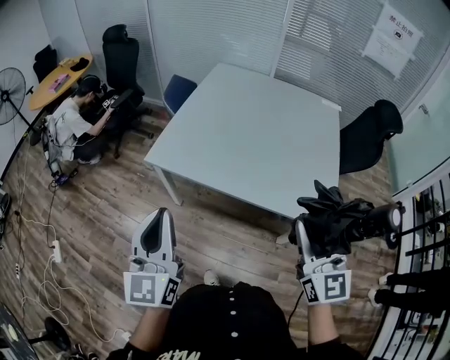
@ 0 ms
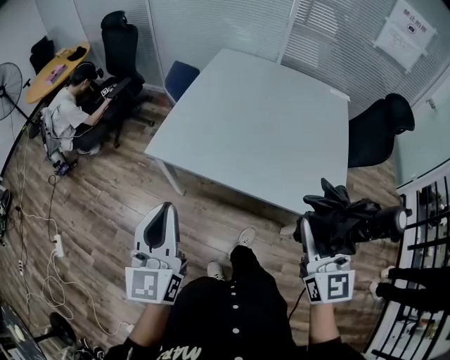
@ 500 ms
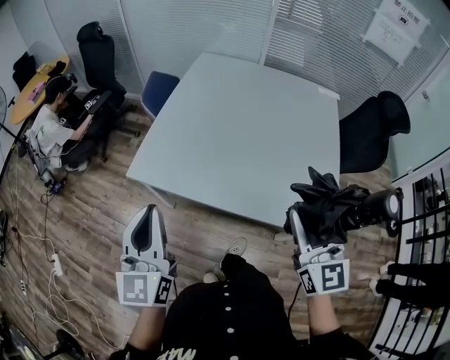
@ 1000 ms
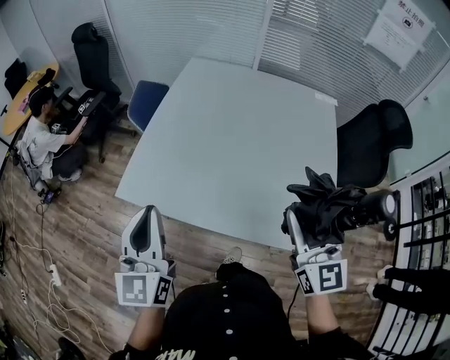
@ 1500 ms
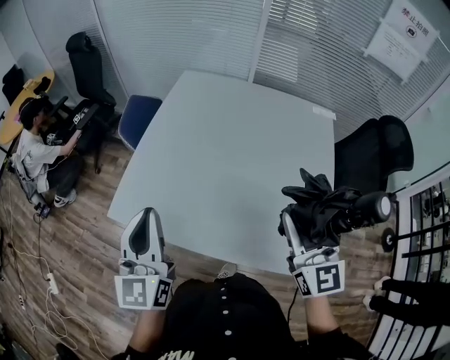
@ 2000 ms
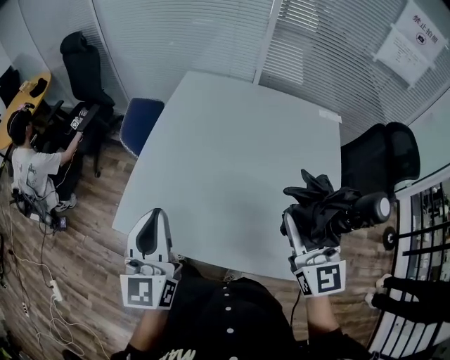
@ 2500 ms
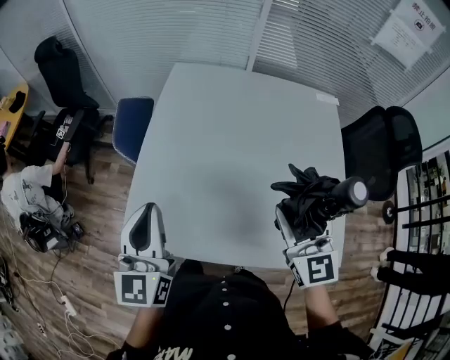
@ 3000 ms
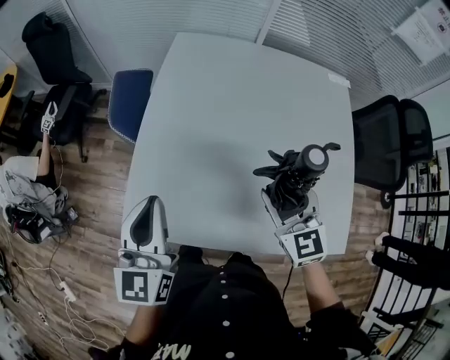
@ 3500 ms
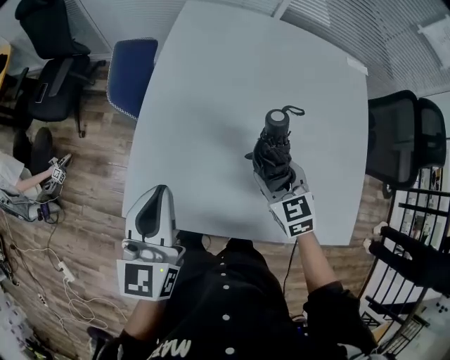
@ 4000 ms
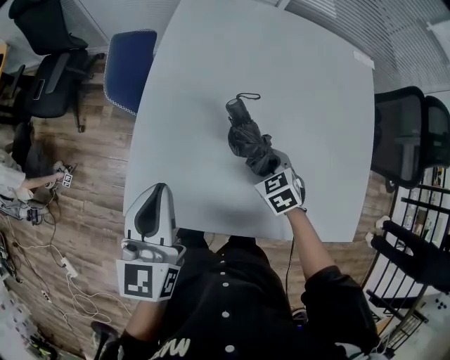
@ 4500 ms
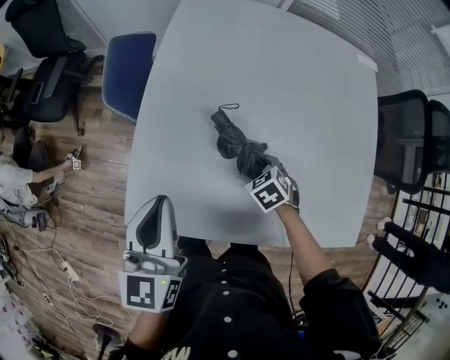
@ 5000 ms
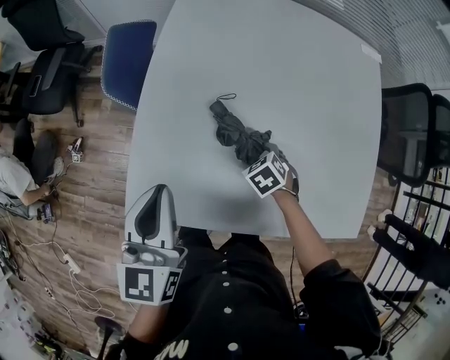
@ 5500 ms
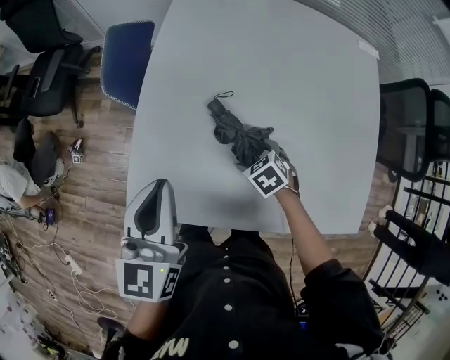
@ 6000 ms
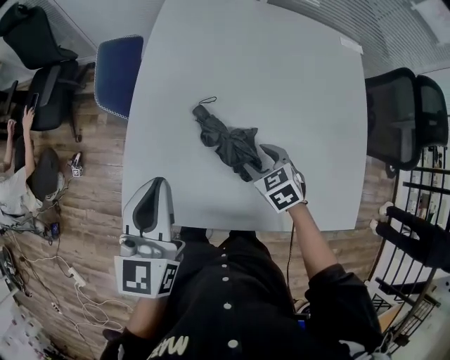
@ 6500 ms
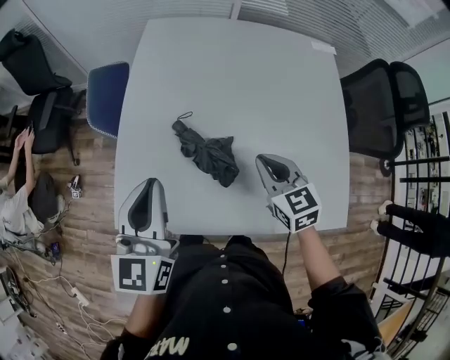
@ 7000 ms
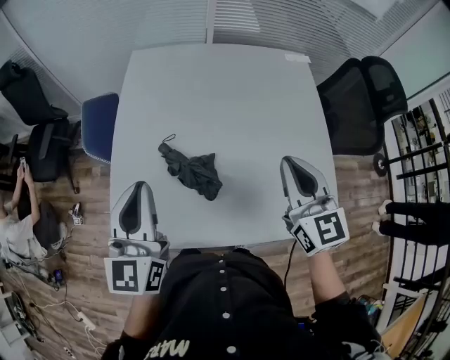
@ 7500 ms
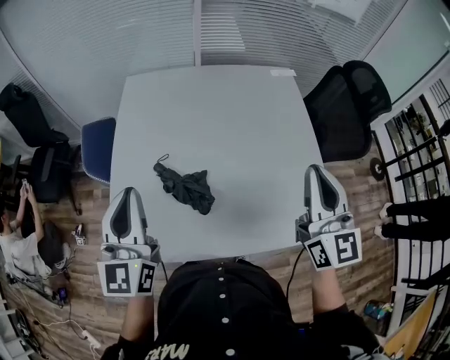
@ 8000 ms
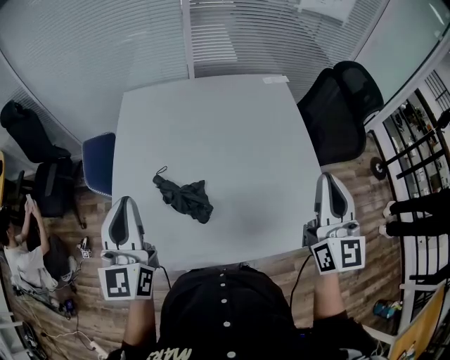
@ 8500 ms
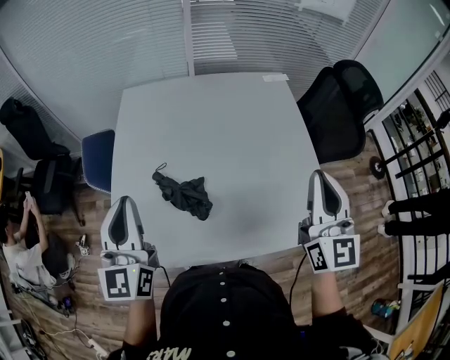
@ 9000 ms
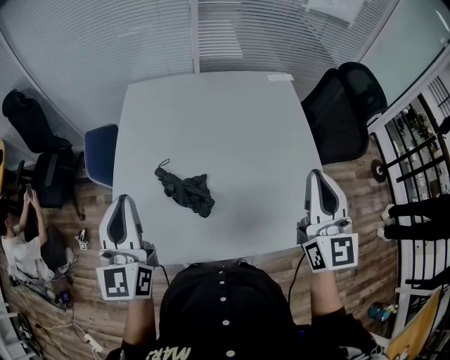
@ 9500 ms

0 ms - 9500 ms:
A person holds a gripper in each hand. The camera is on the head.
0 ms - 2000 ms: Both grippers move forward, roughly 25 cm.
2000 ms - 4000 ms: The left gripper shifts some 20 cm forward, to the left and downward, and changes its angle by approximately 20 degrees. The right gripper moves downward, to the left and forward, some 35 cm, and points its fingers roughly 40 degrees further downward.
4000 ms - 5500 ms: The right gripper heads downward, covering roughly 15 cm, and points its fingers some 30 degrees further downward.
5500 ms - 7500 ms: The left gripper shifts some 10 cm upward. The right gripper shifts approximately 35 cm upward, tips its fingers upward by some 70 degrees, and closes up.
7500 ms - 9500 ms: The right gripper heads to the right and upward, covering about 10 cm, and rotates approximately 20 degrees.

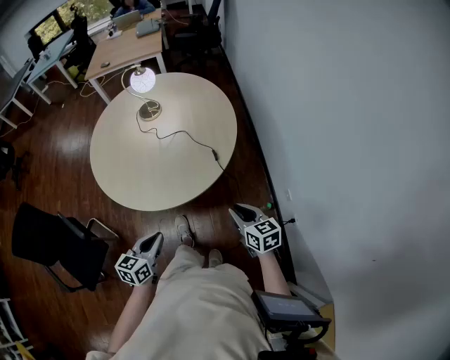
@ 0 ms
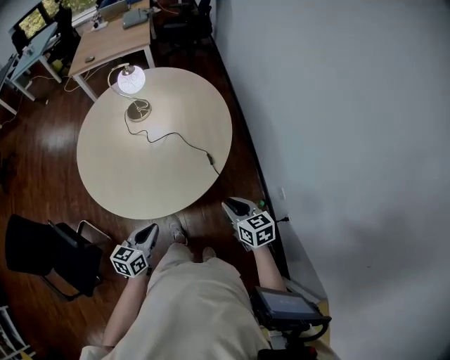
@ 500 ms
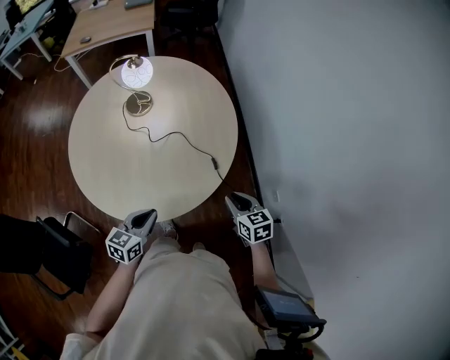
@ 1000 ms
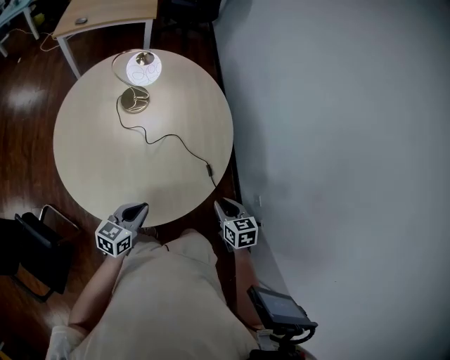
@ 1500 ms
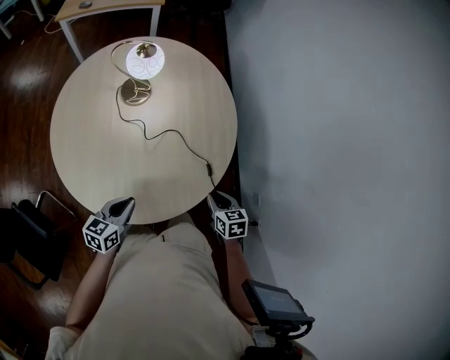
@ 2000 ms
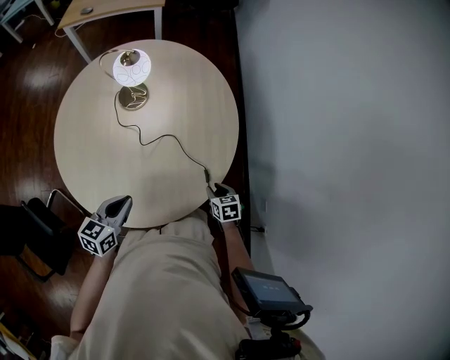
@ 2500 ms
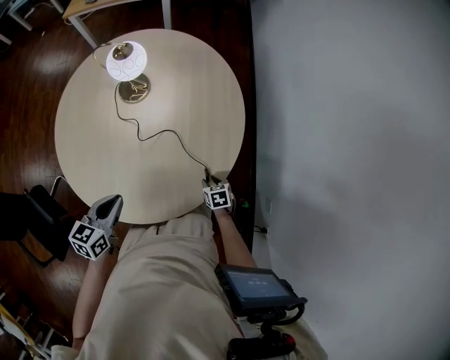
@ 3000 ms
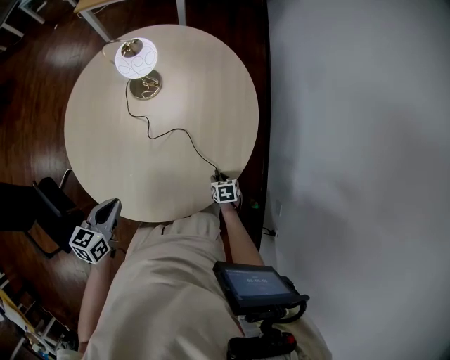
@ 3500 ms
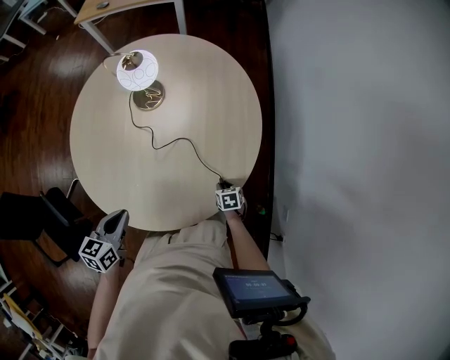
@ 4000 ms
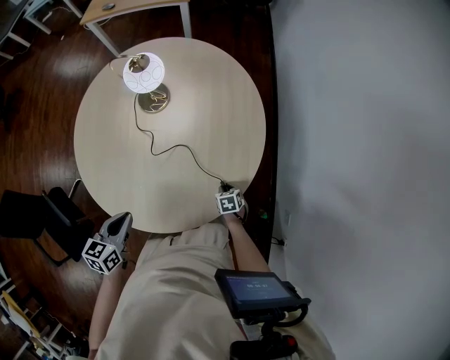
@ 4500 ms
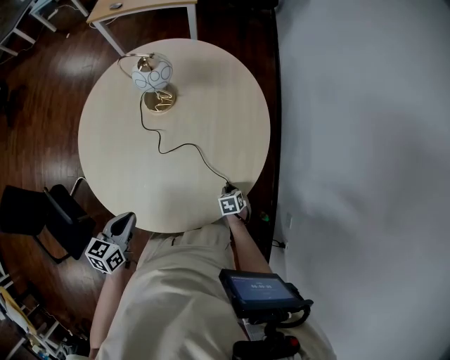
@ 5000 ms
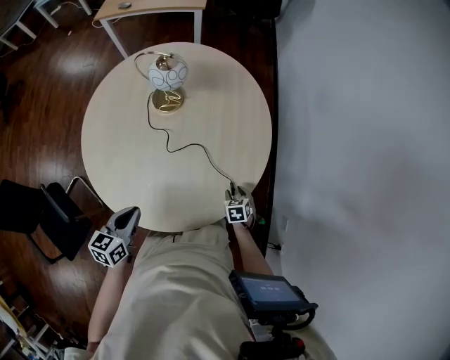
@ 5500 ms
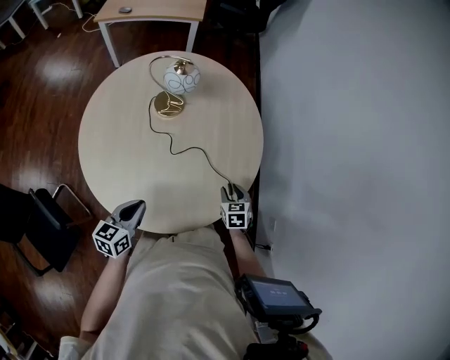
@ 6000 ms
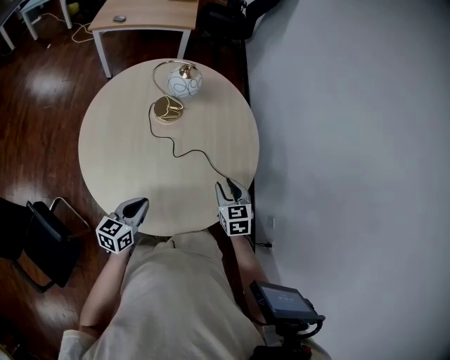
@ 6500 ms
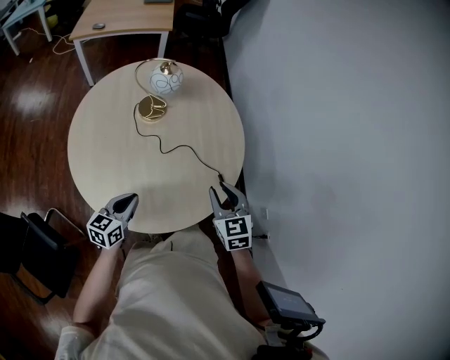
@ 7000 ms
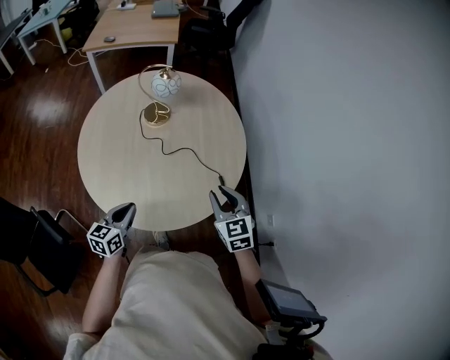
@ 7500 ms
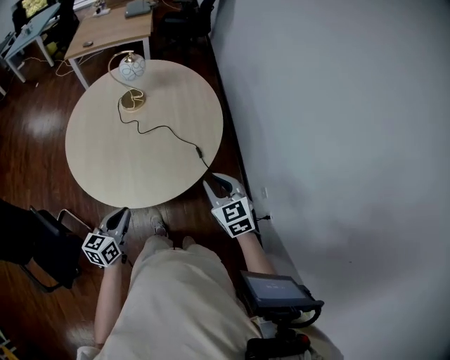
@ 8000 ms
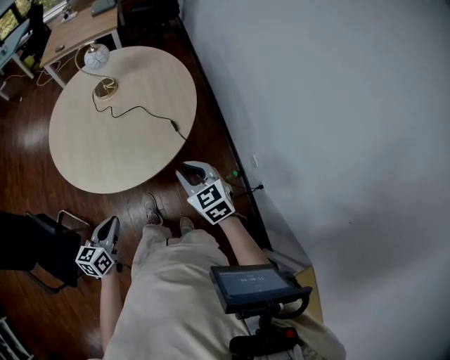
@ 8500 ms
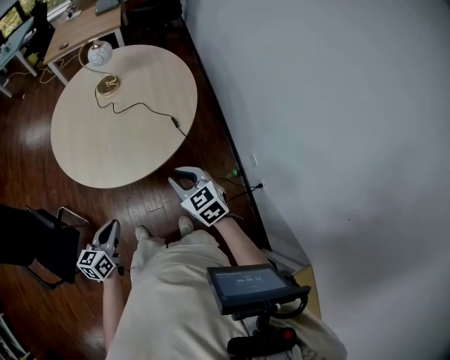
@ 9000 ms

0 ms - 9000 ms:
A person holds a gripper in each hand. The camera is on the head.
0 ms - 2000 ms: Both grippers travel together forward and to the left, roughly 25 cm. The right gripper changes its angle by roughly 20 degrees.
2000 ms - 4500 ms: The right gripper goes some 25 cm downward and forward, and rotates approximately 20 degrees. The left gripper swivels about 20 degrees.
4500 ms - 7000 ms: The right gripper travels upward by approximately 40 cm, and tilts its fingers some 40 degrees upward. Meanwhile the left gripper is displaced to the left by approximately 10 cm, and turns by about 20 degrees.
7000 ms - 9000 ms: Both grippers move backward and to the right, roughly 30 cm. The right gripper turns by approximately 20 degrees.

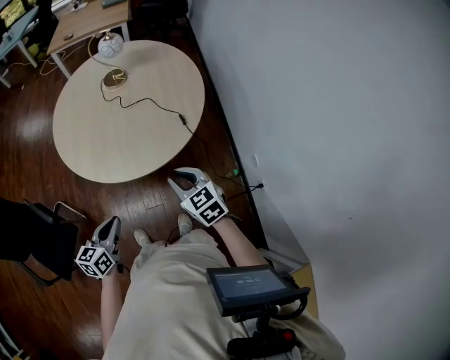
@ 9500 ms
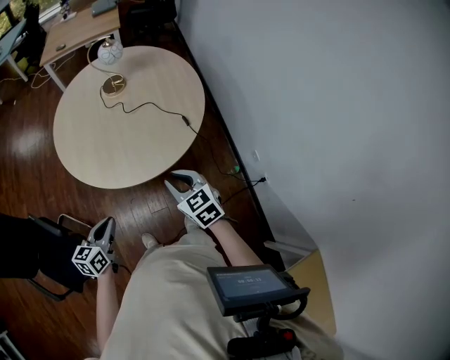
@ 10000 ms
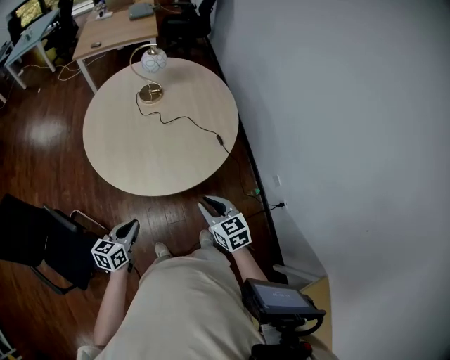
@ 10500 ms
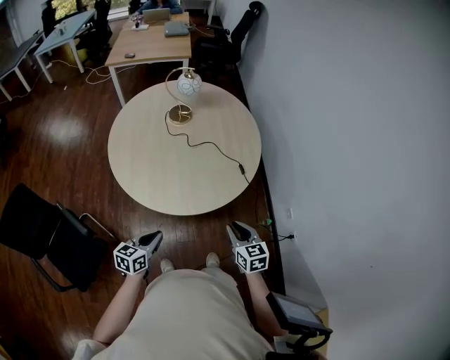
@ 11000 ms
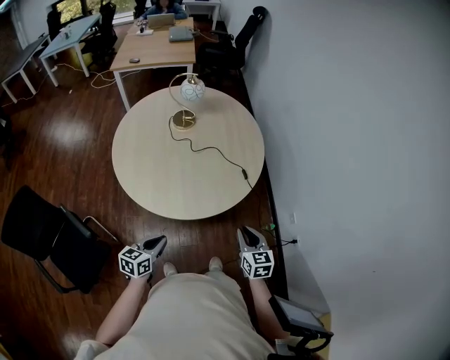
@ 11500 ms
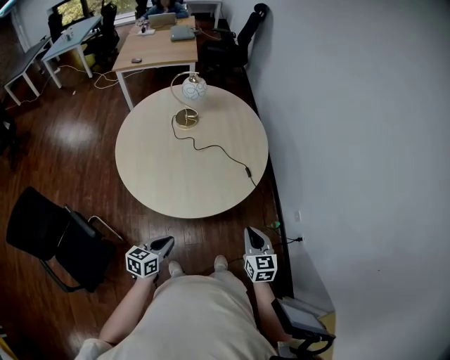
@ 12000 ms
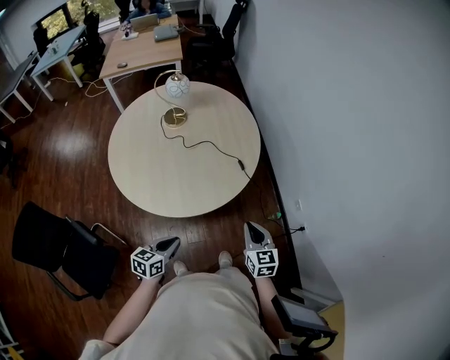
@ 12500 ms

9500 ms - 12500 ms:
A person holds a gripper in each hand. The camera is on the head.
9500 ms - 11000 ms: The right gripper shifts by some 5 cm. The left gripper travels to the left and forward by approximately 10 cm.
11000 ms - 12500 ms: The grippers both shift to the right by approximately 5 cm.

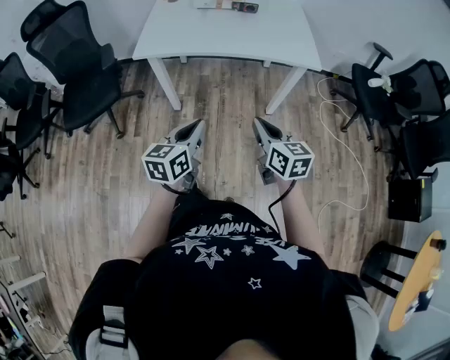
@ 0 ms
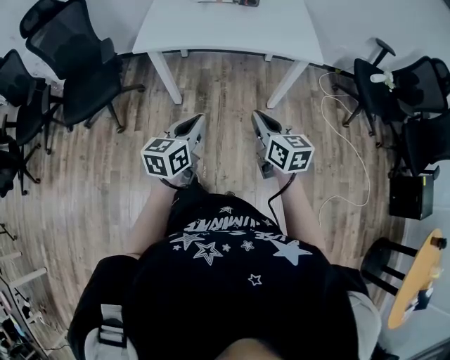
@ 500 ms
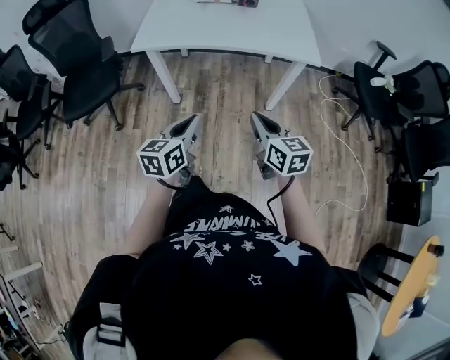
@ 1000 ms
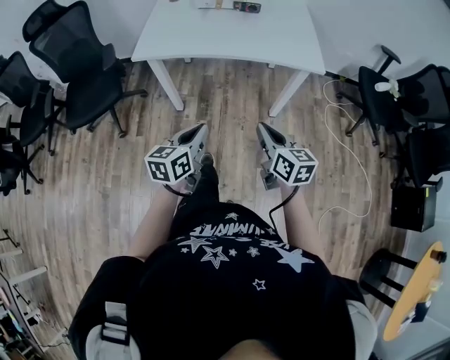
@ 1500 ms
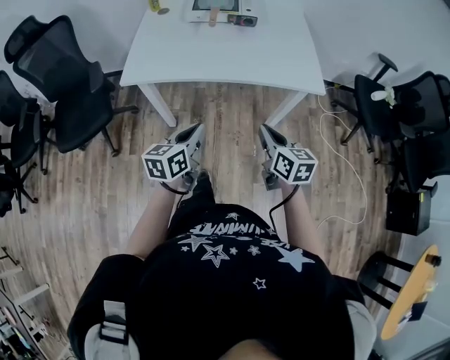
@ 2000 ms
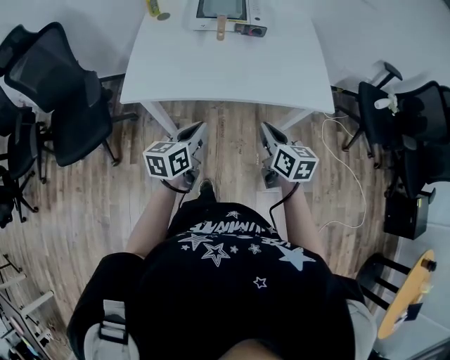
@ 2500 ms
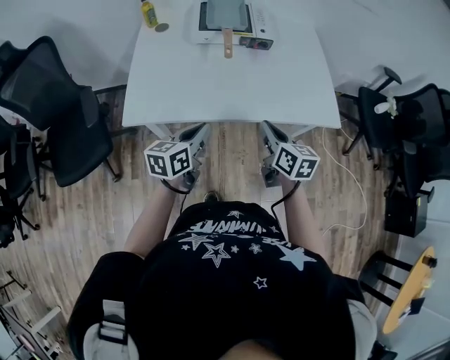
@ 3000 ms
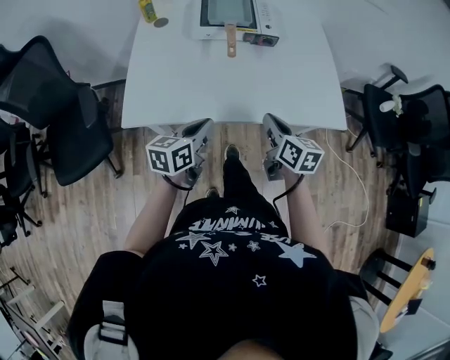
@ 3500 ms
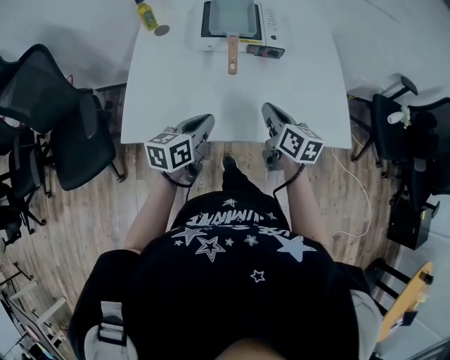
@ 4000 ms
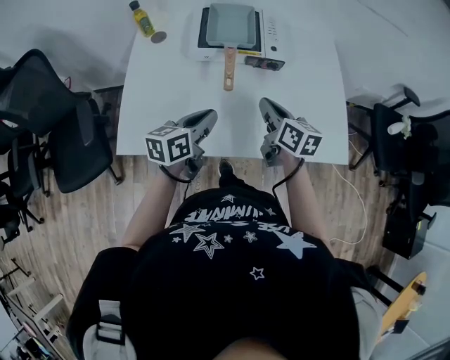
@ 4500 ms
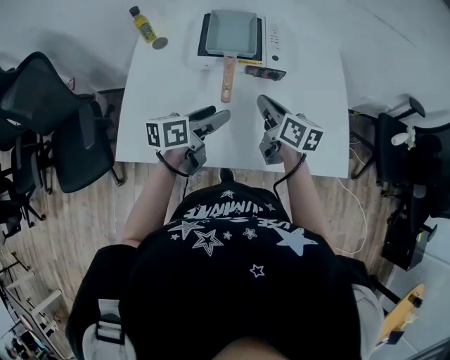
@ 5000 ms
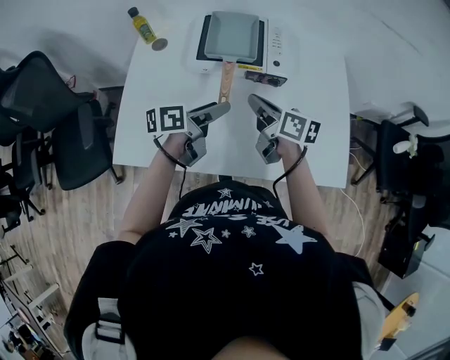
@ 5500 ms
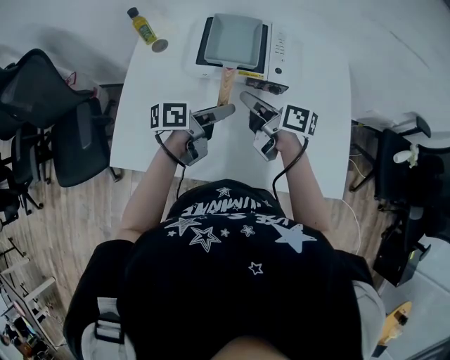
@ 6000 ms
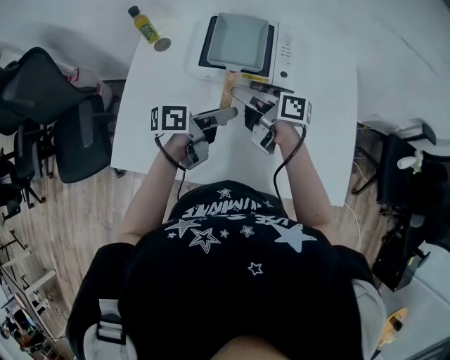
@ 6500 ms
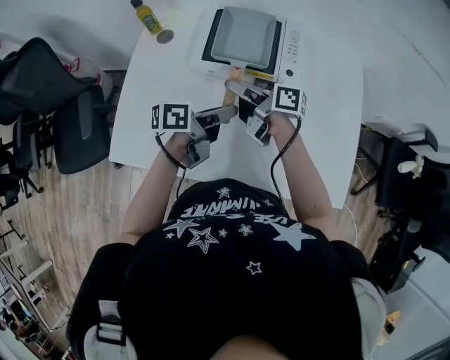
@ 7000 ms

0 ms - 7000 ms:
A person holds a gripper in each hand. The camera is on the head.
0 ms - 2000 ms: The grippers both shift forward by roughly 15 cm.
2000 ms - 3500 ms: The left gripper moves forward, roughly 20 cm, while the right gripper is displaced forward and to the left by some 25 cm.
3500 ms - 5000 ms: Both grippers travel together forward, about 20 cm. The left gripper opens its fingers.
5000 ms - 7000 ms: The right gripper is displaced to the left and forward by some 15 cm, changes its angle by approximately 40 degrees, and opens. Meanwhile the left gripper shifts some 10 cm forward, and closes.
